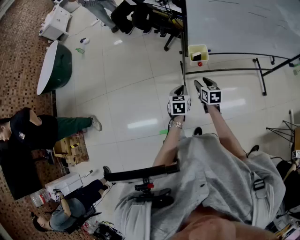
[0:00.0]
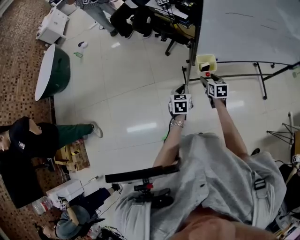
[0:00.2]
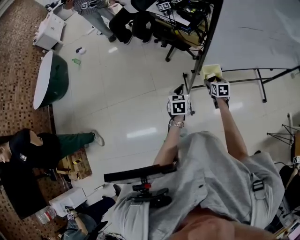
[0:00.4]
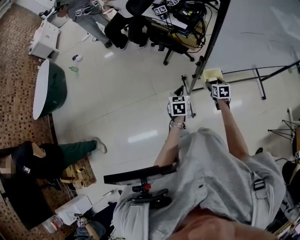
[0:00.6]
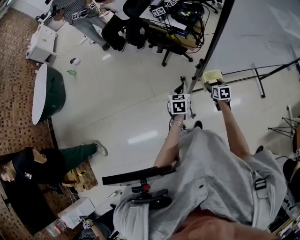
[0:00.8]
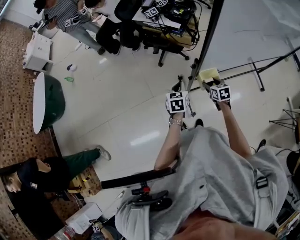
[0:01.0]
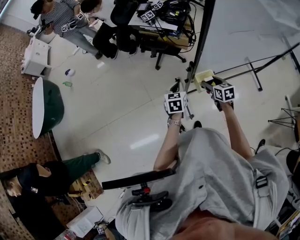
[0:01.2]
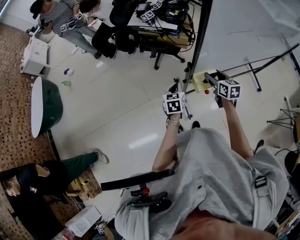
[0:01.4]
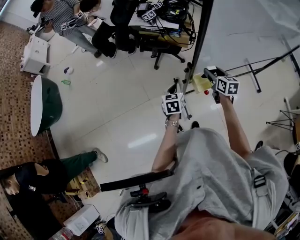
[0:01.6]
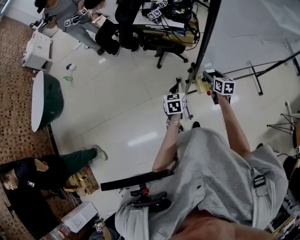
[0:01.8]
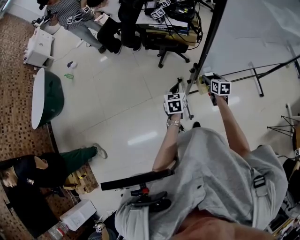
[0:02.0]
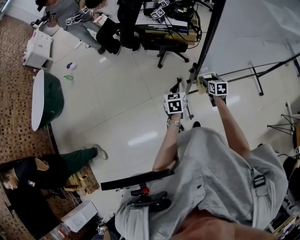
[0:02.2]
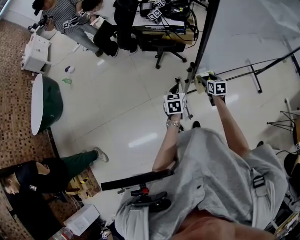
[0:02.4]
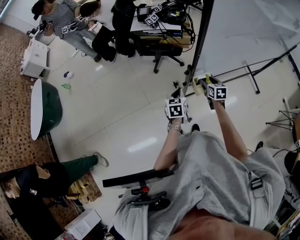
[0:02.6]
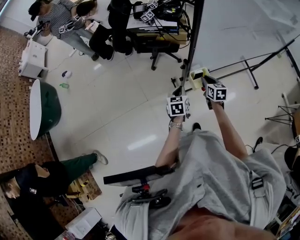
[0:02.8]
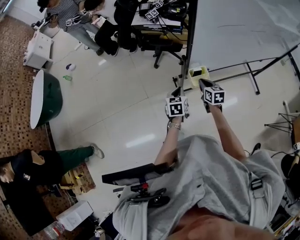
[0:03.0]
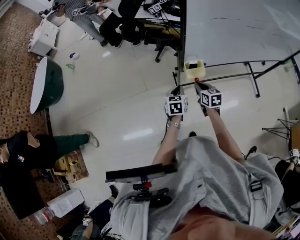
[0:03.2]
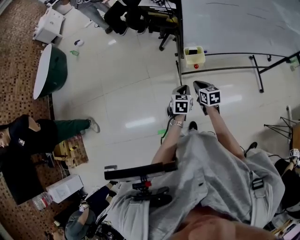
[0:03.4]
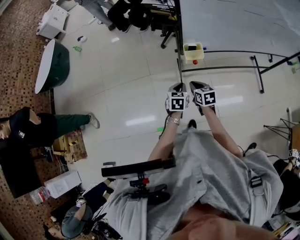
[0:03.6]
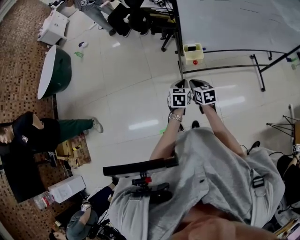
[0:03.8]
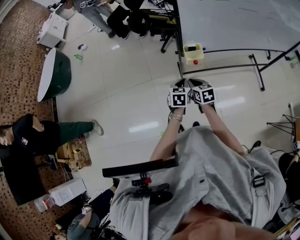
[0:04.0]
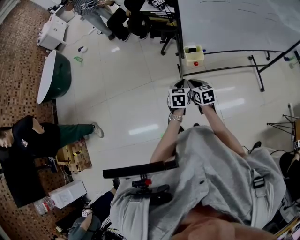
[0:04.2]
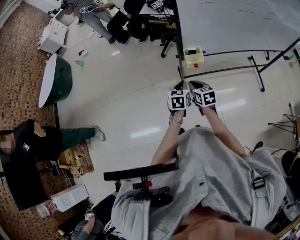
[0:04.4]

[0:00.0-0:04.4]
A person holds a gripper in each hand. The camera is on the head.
0.0 to 1.4 s: The left gripper shifts roughly 20 cm forward. Meanwhile the right gripper shifts some 20 cm forward and upward.
1.4 to 3.0 s: The right gripper moves backward and downward, approximately 10 cm, and closes up, while the left gripper heads backward, covering some 5 cm.
3.0 to 4.4 s: Both grippers move backward, about 15 cm.

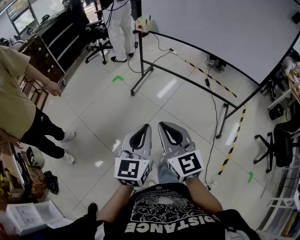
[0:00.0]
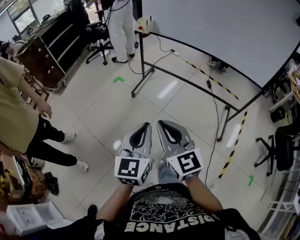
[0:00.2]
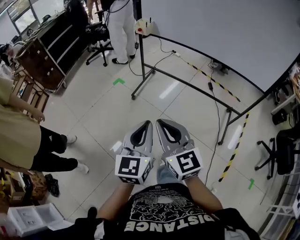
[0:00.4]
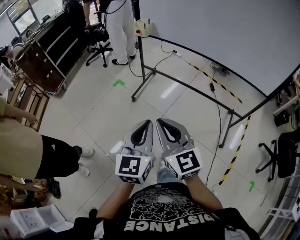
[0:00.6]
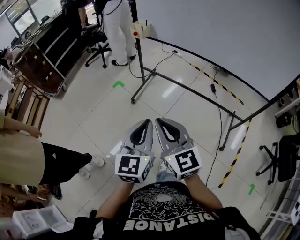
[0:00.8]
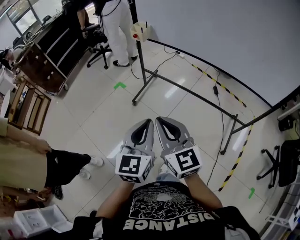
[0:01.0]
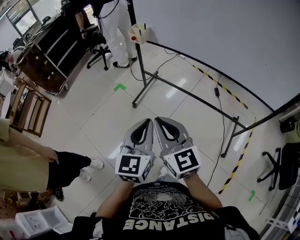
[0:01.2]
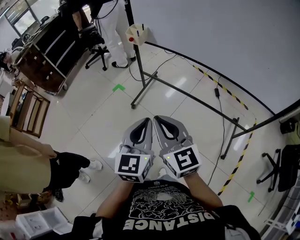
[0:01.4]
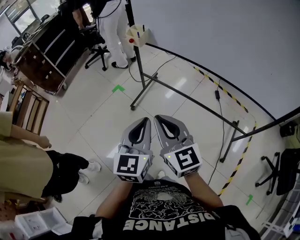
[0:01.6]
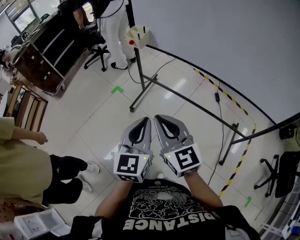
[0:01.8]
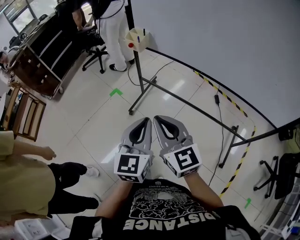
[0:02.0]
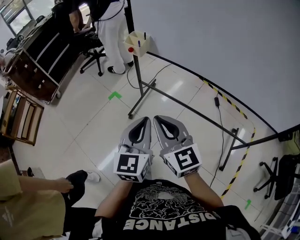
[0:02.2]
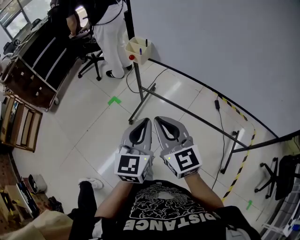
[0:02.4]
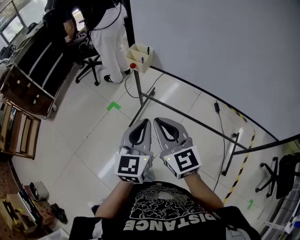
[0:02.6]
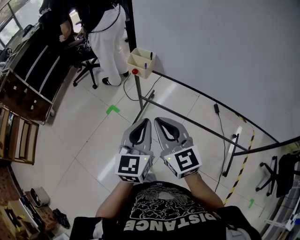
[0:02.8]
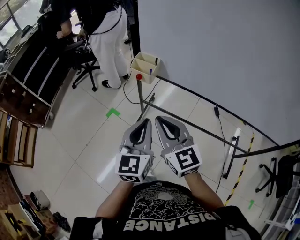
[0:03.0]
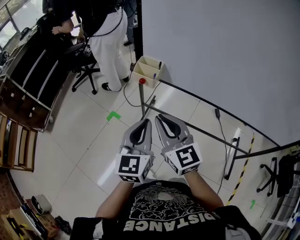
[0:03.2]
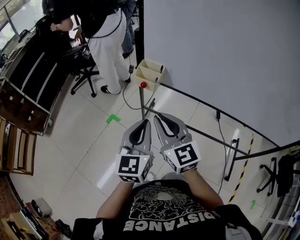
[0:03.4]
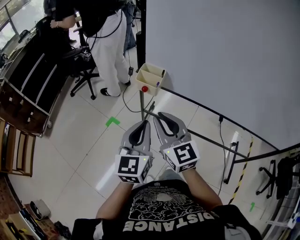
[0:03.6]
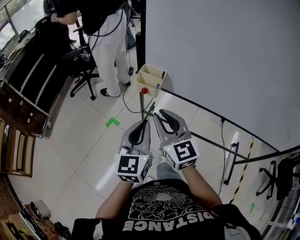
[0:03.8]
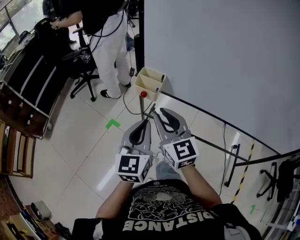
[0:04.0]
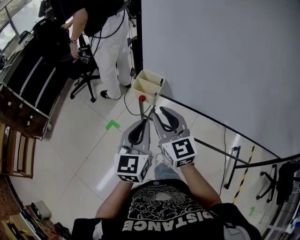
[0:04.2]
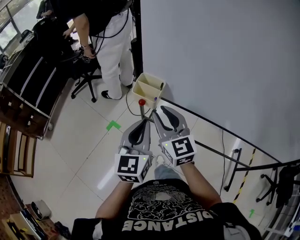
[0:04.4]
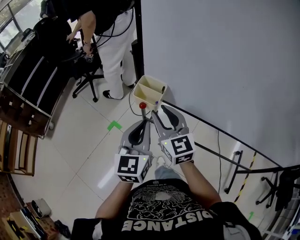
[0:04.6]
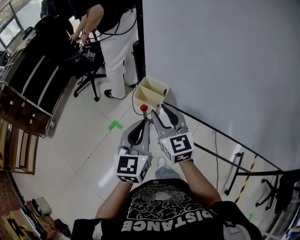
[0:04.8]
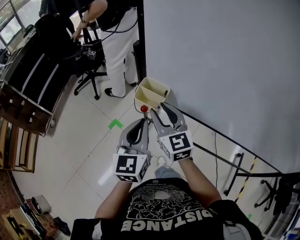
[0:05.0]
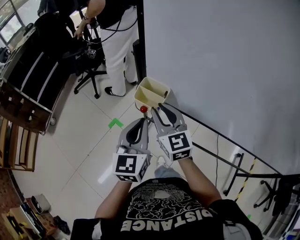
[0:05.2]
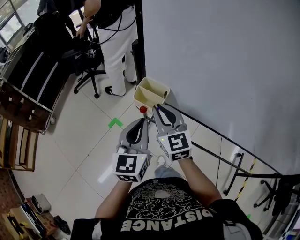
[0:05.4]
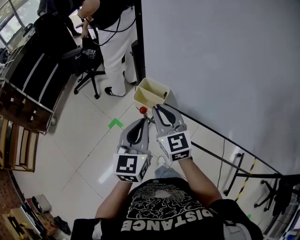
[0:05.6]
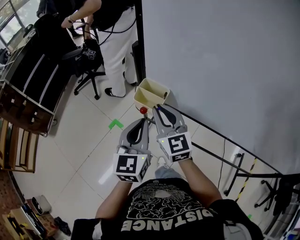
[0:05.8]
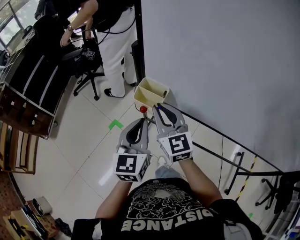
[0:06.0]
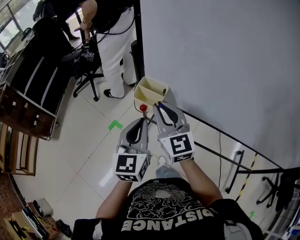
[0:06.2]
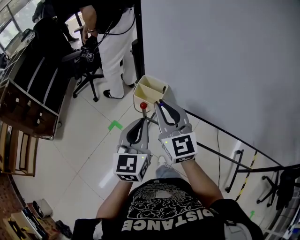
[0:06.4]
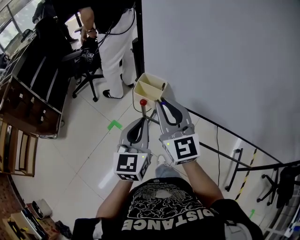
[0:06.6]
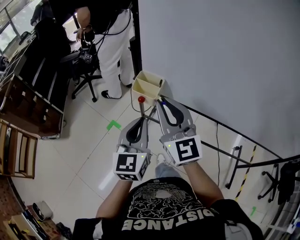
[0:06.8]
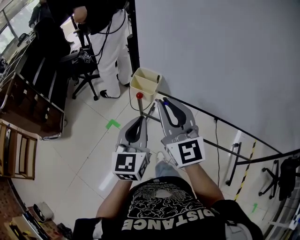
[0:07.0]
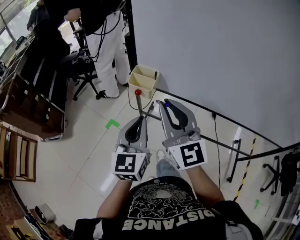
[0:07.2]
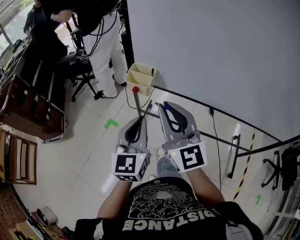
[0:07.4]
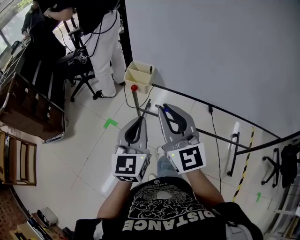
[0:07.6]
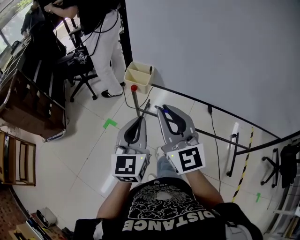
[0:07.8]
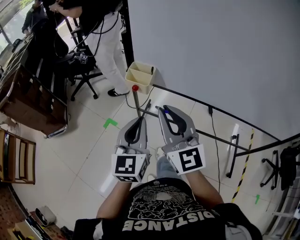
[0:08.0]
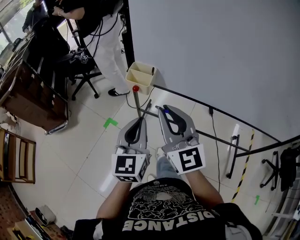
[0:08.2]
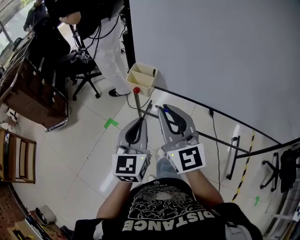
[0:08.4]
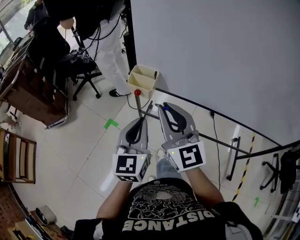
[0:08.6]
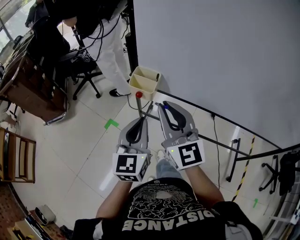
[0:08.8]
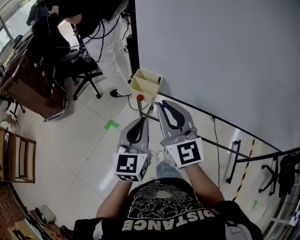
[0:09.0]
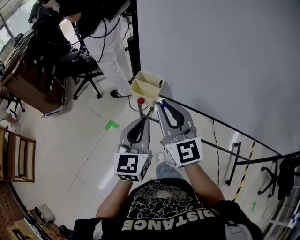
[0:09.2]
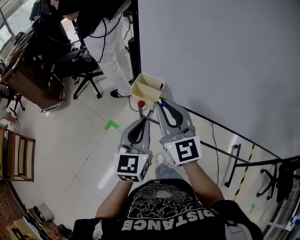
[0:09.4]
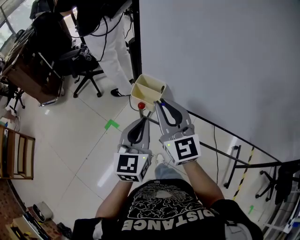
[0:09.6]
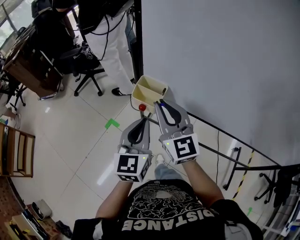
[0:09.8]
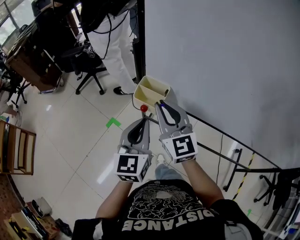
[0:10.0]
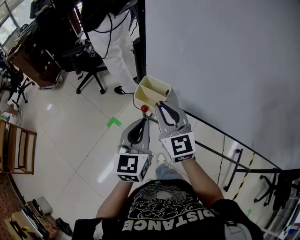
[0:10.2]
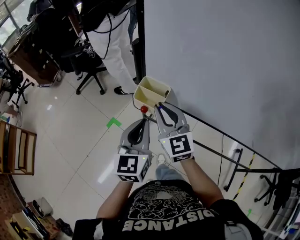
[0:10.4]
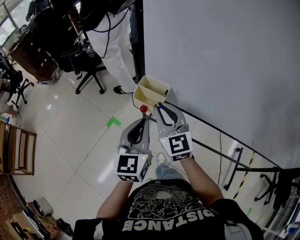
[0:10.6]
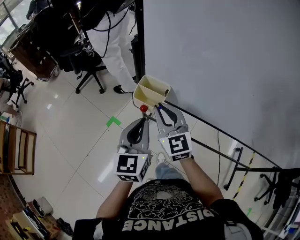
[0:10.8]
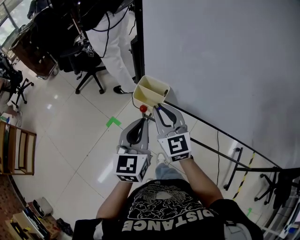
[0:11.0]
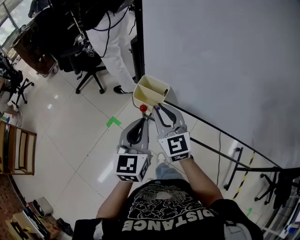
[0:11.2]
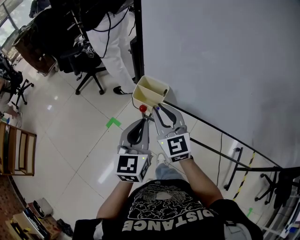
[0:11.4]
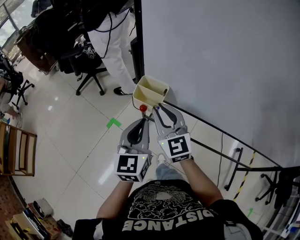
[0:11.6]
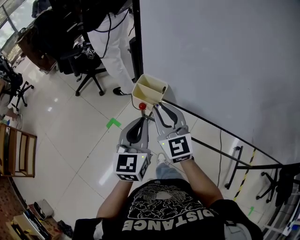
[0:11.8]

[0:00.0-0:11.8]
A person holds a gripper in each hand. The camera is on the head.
0.0 to 1.4 s: The left gripper is displaced forward and to the right by roughly 30 cm. The right gripper goes roughly 30 cm forward.
1.4 to 3.0 s: The grippers both shift forward by some 35 cm.
3.0 to 4.4 s: The grippers both shift forward by about 15 cm. The right gripper opens.
4.4 to 6.0 s: The right gripper travels forward by roughly 5 cm; the left gripper shifts by about 5 cm.
6.0 to 7.4 s: The left gripper moves backward, approximately 10 cm. Meanwhile the right gripper shifts roughly 20 cm backward and upward.
7.4 to 8.8 s: The right gripper ends up about 5 cm from where it was.
8.8 to 10.4 s: The left gripper travels forward by roughly 10 cm, while the right gripper heads forward and downward, covering roughly 15 cm.
10.4 to 11.8 s: The grippers stay close to where they were, moving slightly.

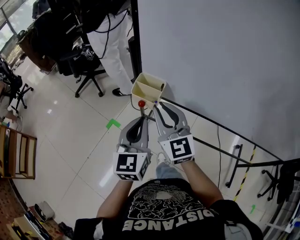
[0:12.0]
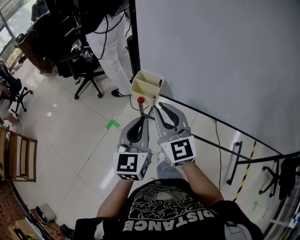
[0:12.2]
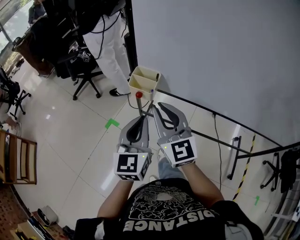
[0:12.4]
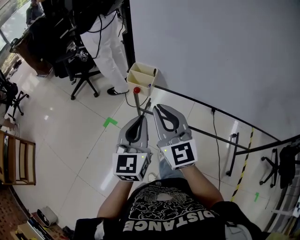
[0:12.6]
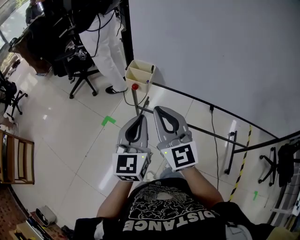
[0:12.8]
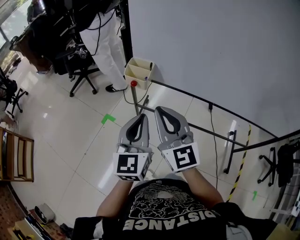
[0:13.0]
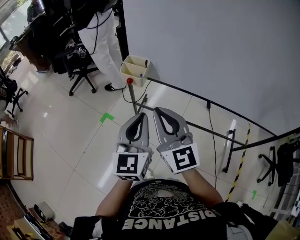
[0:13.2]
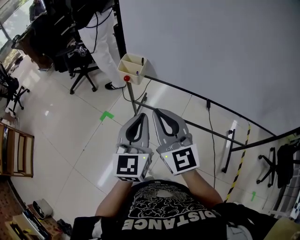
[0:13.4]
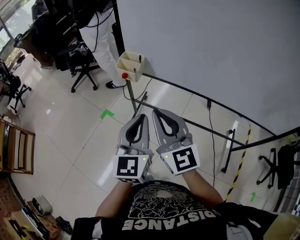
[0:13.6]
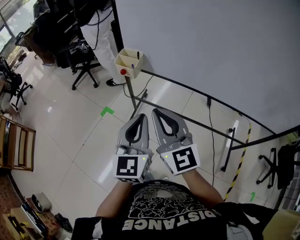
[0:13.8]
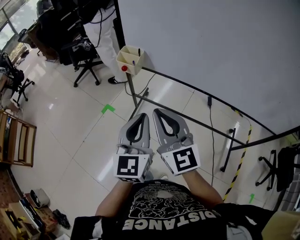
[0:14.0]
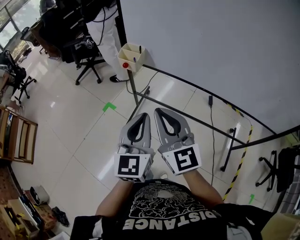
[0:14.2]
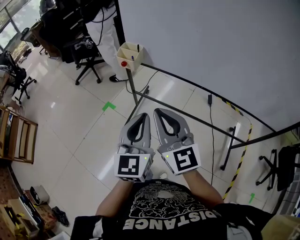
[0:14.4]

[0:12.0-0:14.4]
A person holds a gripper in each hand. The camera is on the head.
12.0 to 13.2 s: Both grippers move backward, some 15 cm.
13.2 to 14.4 s: Both grippers move backward and to the right, some 15 cm.

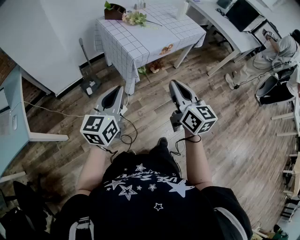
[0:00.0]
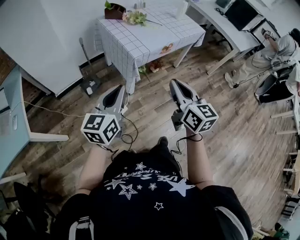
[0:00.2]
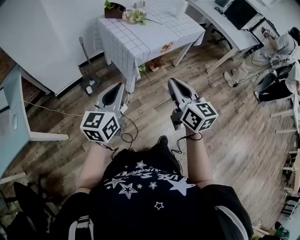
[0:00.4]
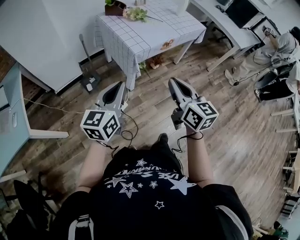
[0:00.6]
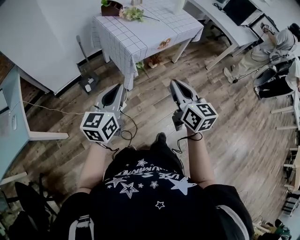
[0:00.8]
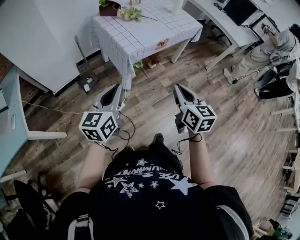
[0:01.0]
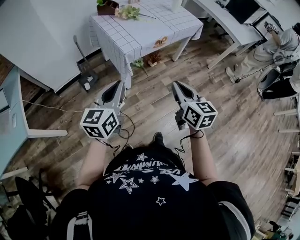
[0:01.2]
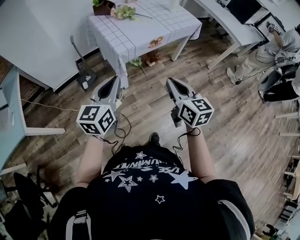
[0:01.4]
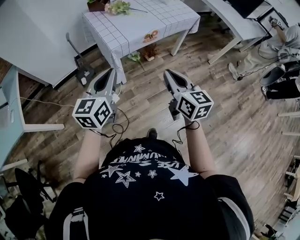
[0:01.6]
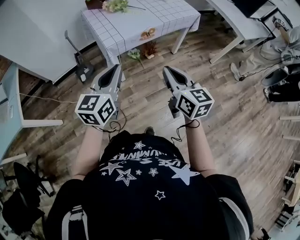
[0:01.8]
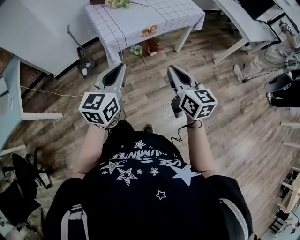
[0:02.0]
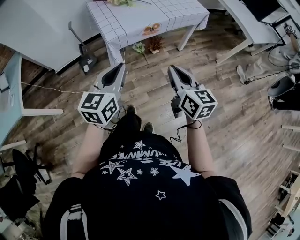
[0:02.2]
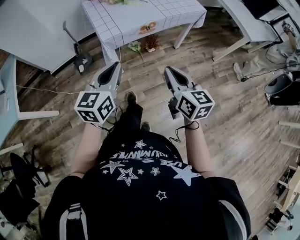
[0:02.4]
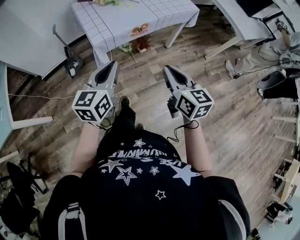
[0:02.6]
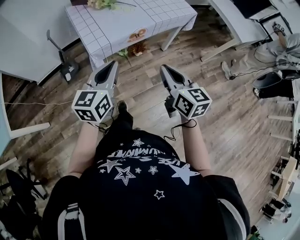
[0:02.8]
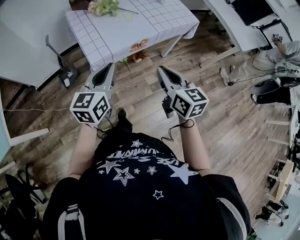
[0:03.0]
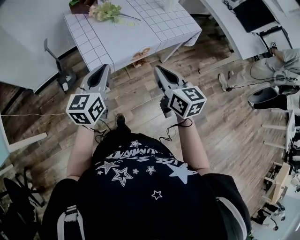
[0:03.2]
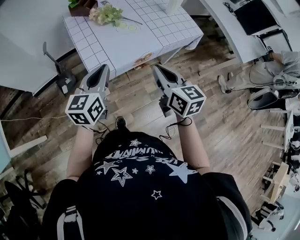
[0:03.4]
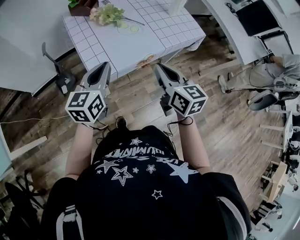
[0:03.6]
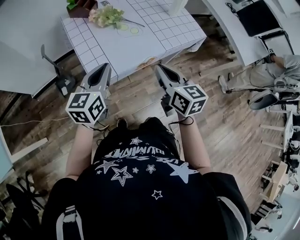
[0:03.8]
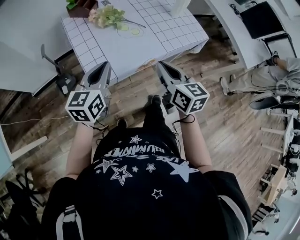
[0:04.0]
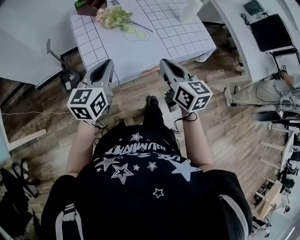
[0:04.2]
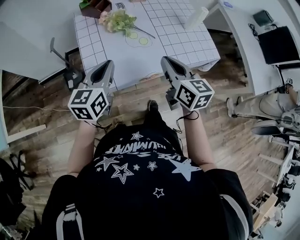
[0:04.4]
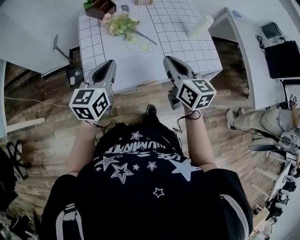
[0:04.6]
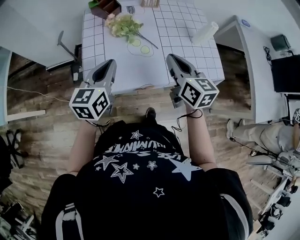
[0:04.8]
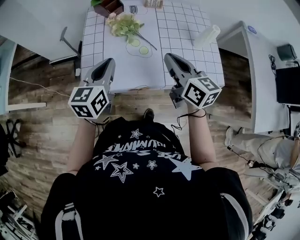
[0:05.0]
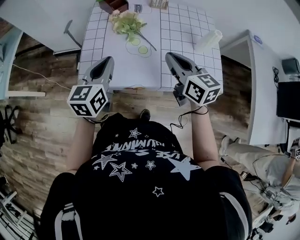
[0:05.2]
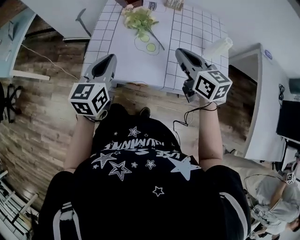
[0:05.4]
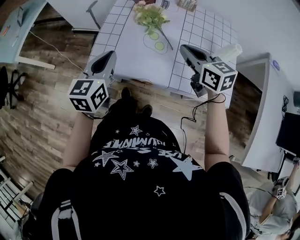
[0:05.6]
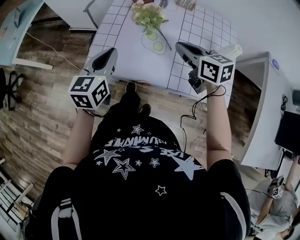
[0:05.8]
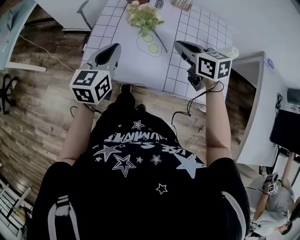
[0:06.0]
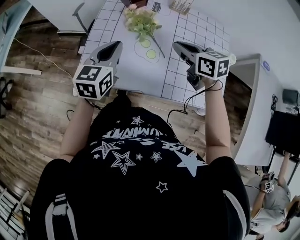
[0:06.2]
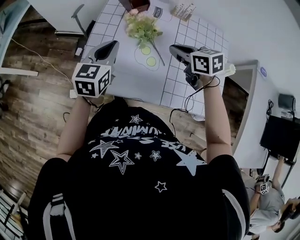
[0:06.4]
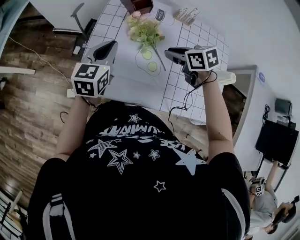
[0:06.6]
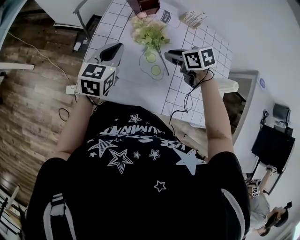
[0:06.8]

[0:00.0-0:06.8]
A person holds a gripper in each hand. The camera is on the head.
0.0 to 1.4 s: The two grippers go roughly 10 cm to the right.
1.4 to 2.8 s: The two grippers go roughly 20 cm forward and to the right.
2.8 to 4.0 s: The two grippers go about 20 cm forward.
4.0 to 5.4 s: The right gripper ends up approximately 25 cm from where it was, and swivels about 40 degrees. The left gripper shifts by approximately 10 cm, and turns by some 40 degrees.
5.4 to 6.8 s: The two grippers go some 20 cm forward and downward. The right gripper points its fingers roughly 40 degrees further downward, and opens.
